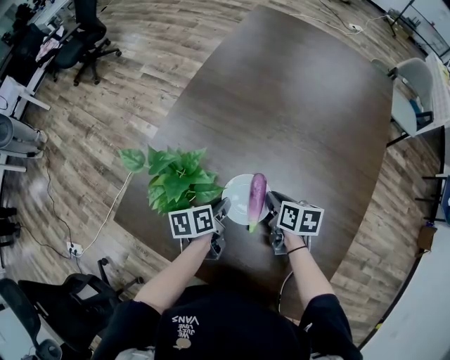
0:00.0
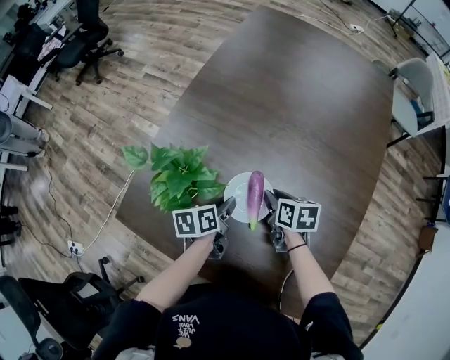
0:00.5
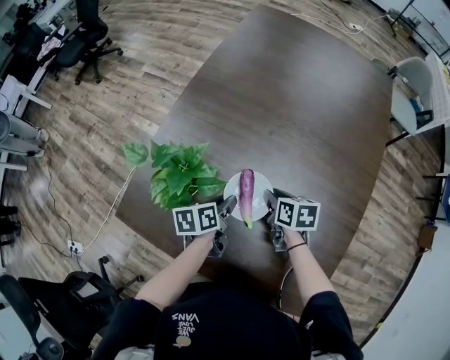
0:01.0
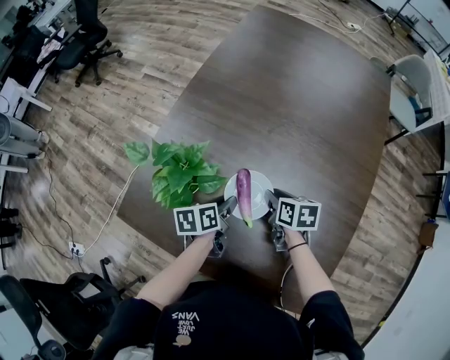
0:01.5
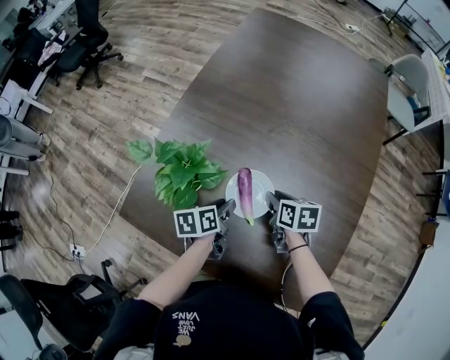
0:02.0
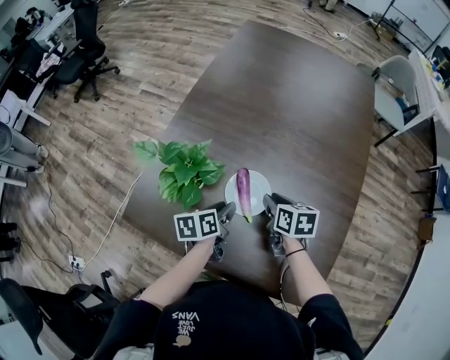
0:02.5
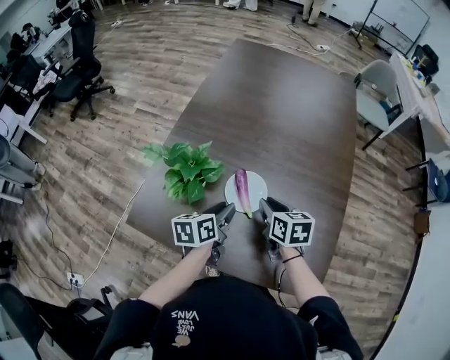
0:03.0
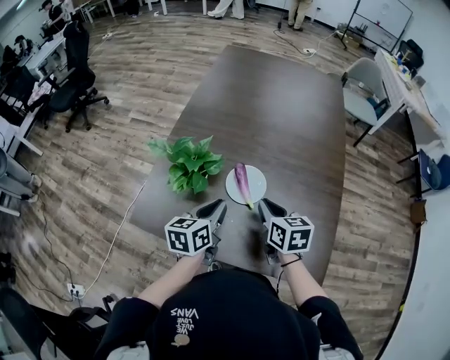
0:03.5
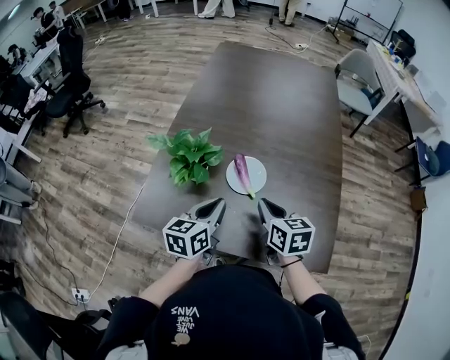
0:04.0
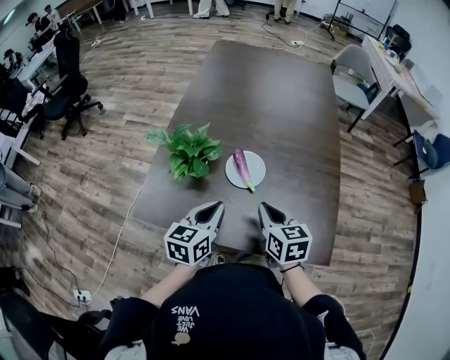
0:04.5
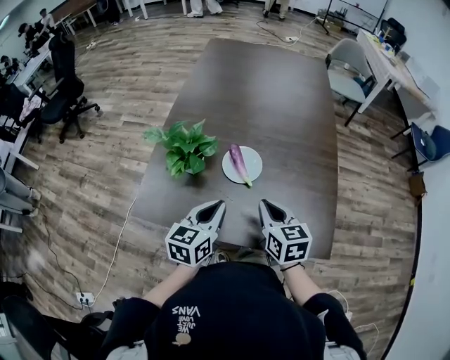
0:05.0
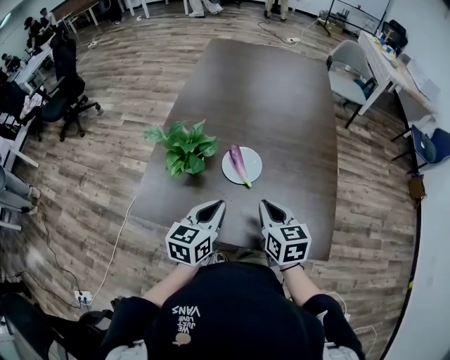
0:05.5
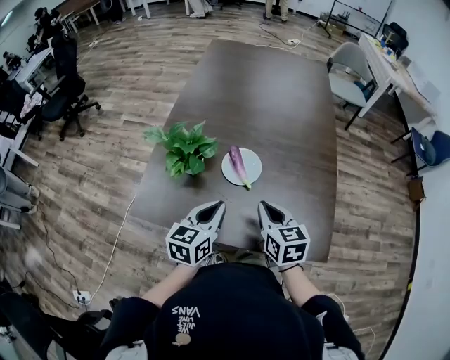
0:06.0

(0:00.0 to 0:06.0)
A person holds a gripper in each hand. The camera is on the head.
0:00.0 - 0:02.0: The left gripper opens up.
0:02.0 - 0:04.0: The left gripper shifts roughly 20 cm upward and backward, rotates roughly 40 degrees, and closes; the right gripper goes about 20 cm backward and upward, and changes its angle by some 30 degrees.
0:04.0 - 0:06.0: The grippers stay close to where they were, moving slightly.

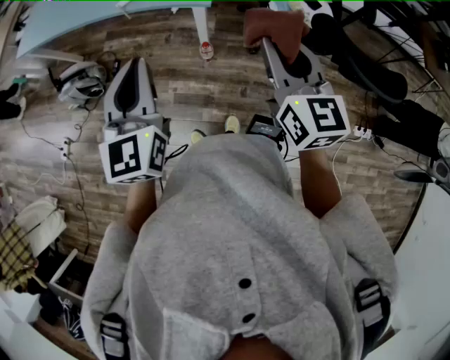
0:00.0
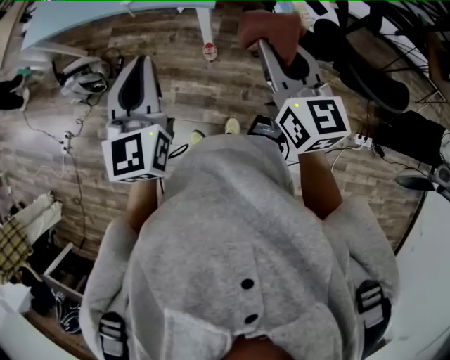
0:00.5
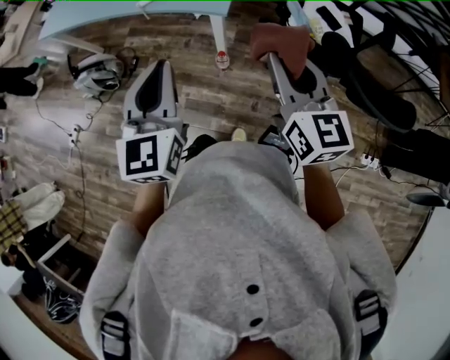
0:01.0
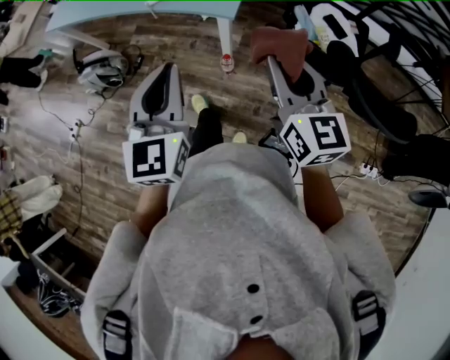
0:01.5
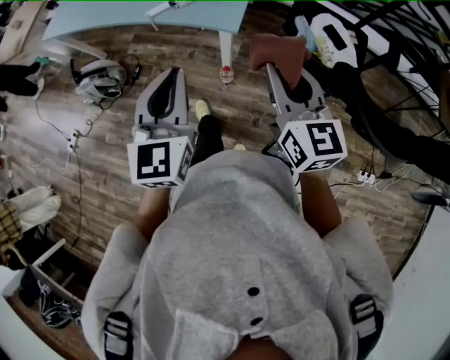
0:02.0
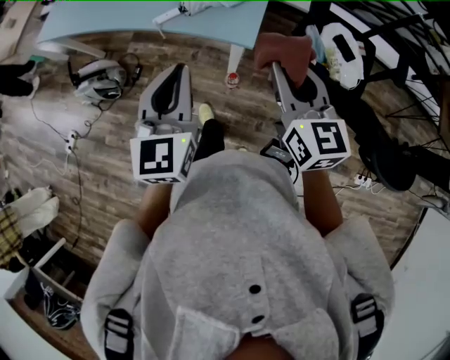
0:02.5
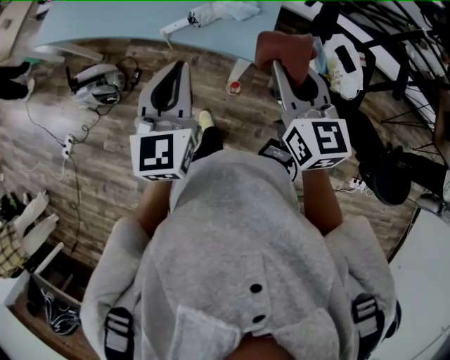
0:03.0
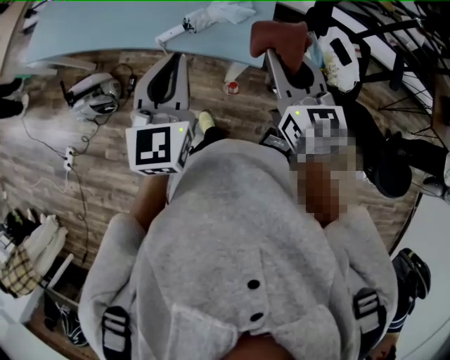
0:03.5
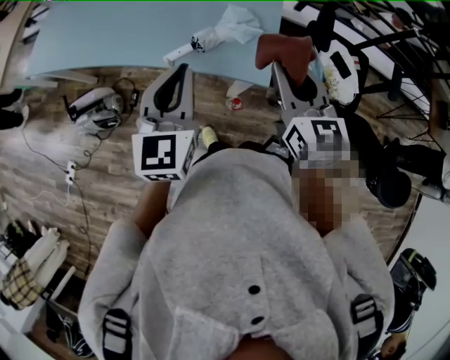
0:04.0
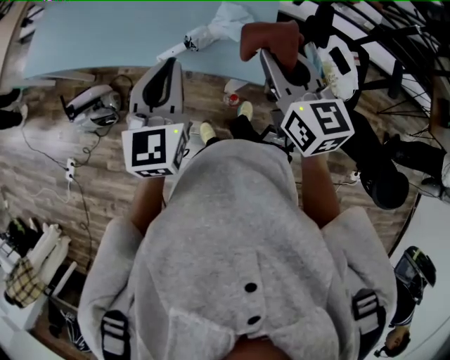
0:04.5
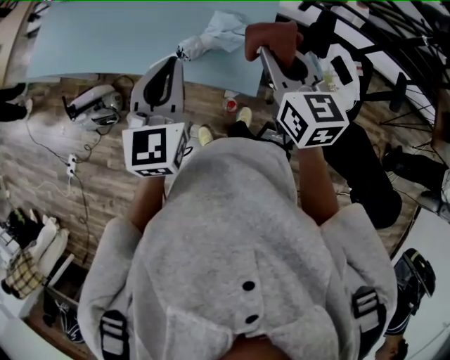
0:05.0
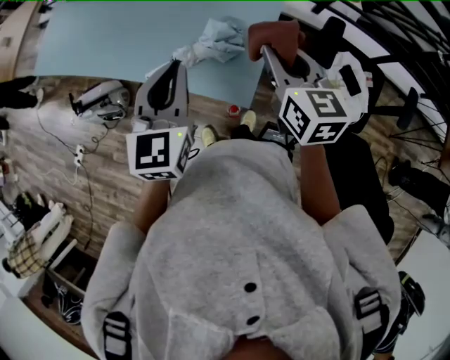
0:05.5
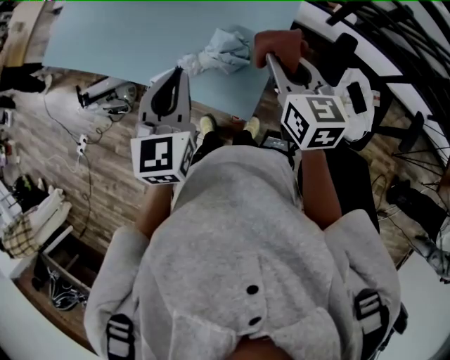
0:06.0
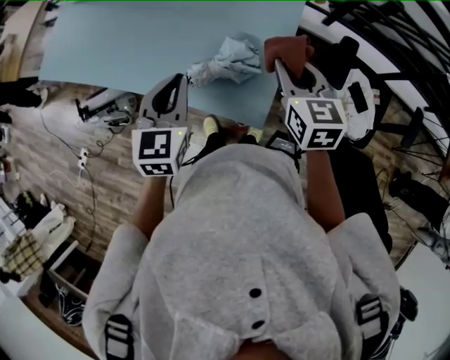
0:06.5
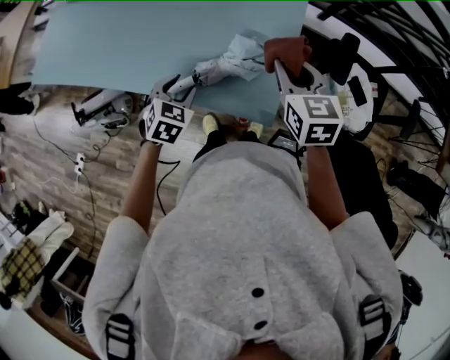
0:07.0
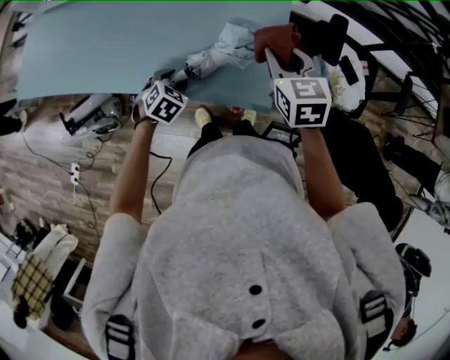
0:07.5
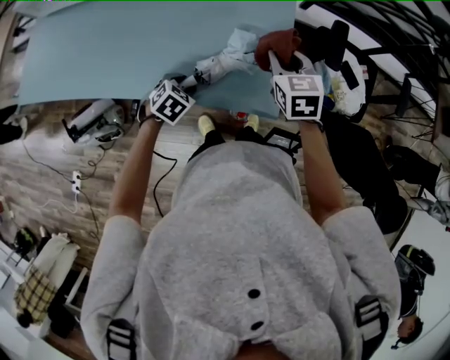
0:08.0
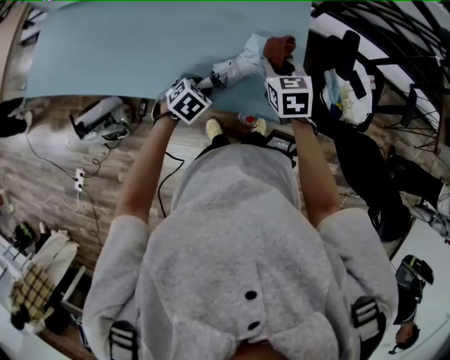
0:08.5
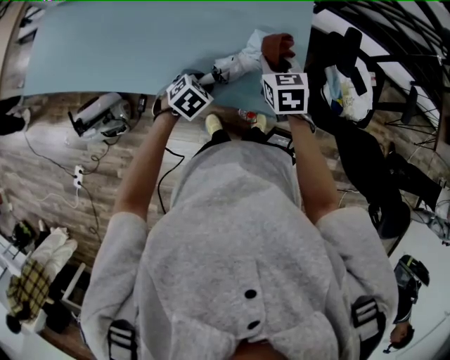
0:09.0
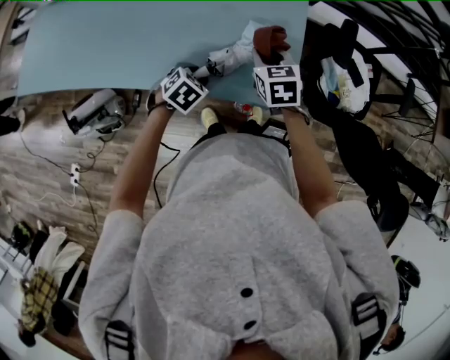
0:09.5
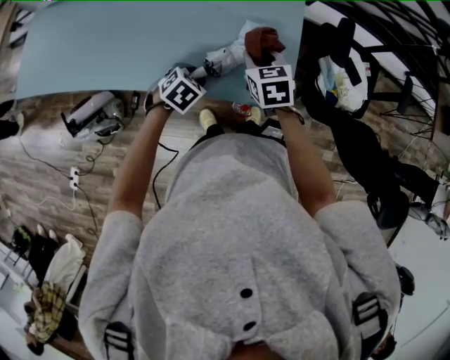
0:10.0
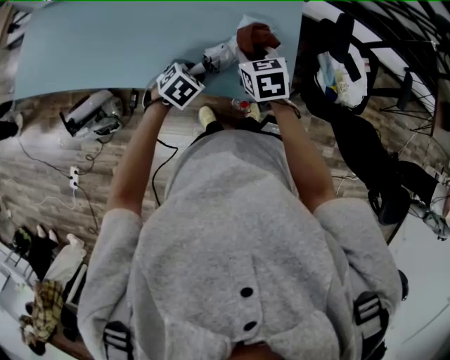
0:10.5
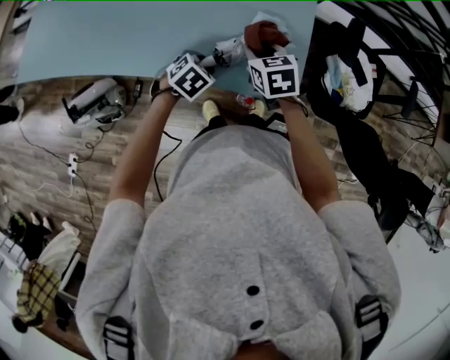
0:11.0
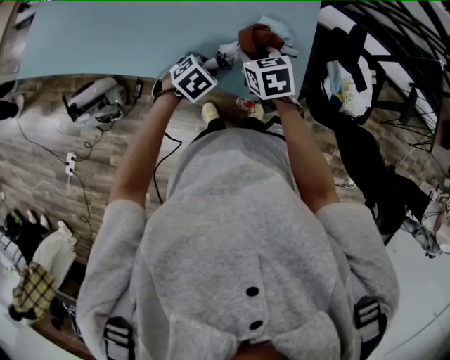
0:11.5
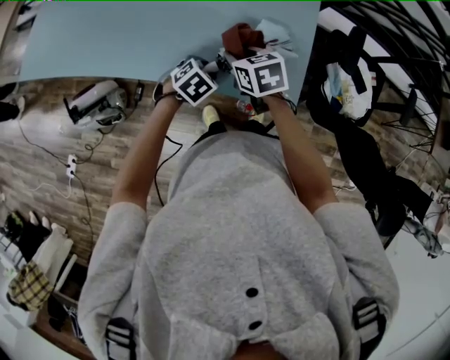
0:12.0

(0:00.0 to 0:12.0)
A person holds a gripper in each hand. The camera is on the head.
0:00.0 - 0:02.0: The left gripper shifts by about 5 cm. Meanwhile the right gripper shifts roughly 5 cm forward.
0:02.0 - 0:04.0: Both grippers move forward and to the left, roughly 30 cm.
0:04.0 - 0:06.0: The left gripper goes some 20 cm to the right and forward. Meanwhile the right gripper moves forward and to the right, about 20 cm.
0:06.0 - 0:08.0: The right gripper heads downward, covering approximately 10 cm, and turns by approximately 30 degrees; the left gripper goes roughly 30 cm downward, tips its fingers downward by some 40 degrees, and opens up.
0:08.0 - 0:10.0: The right gripper heads to the left and downward, covering about 10 cm.
0:10.0 - 0:12.0: The right gripper moves to the left, about 10 cm.

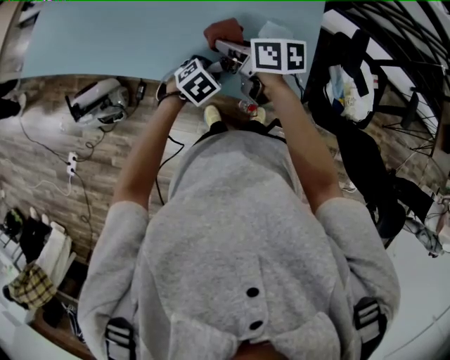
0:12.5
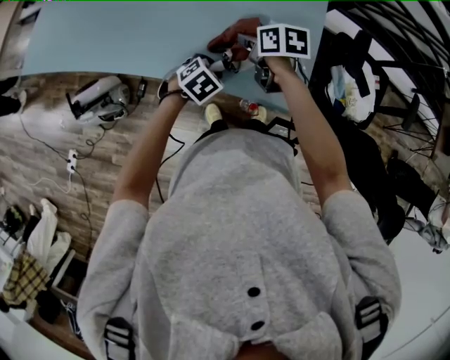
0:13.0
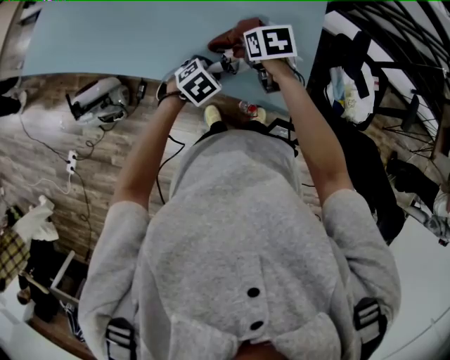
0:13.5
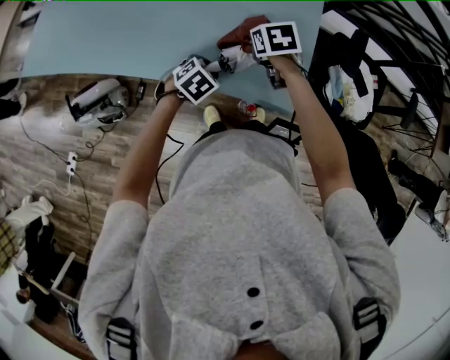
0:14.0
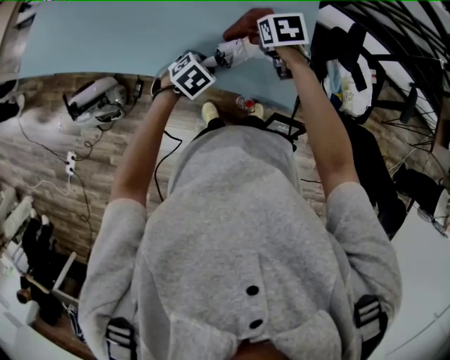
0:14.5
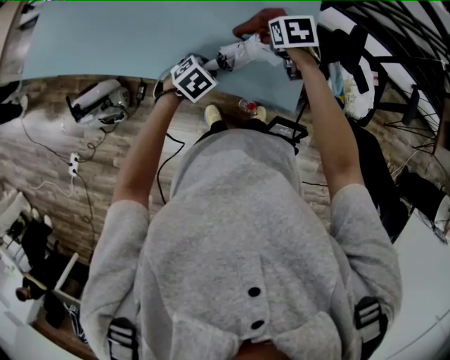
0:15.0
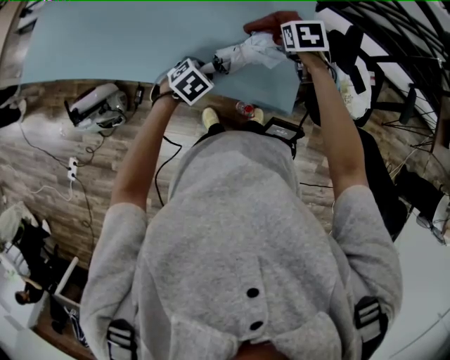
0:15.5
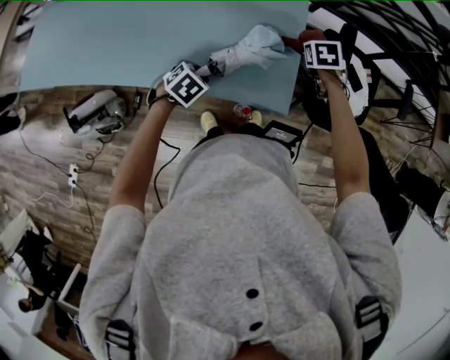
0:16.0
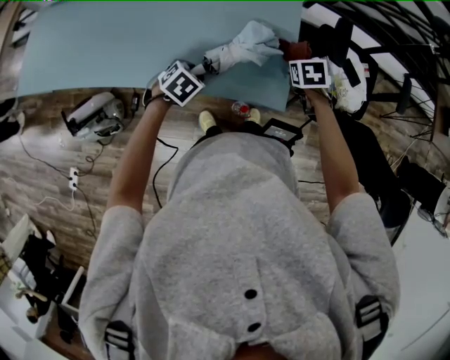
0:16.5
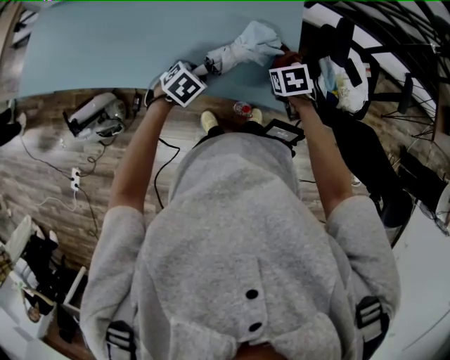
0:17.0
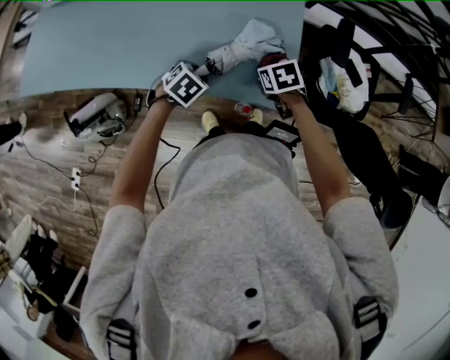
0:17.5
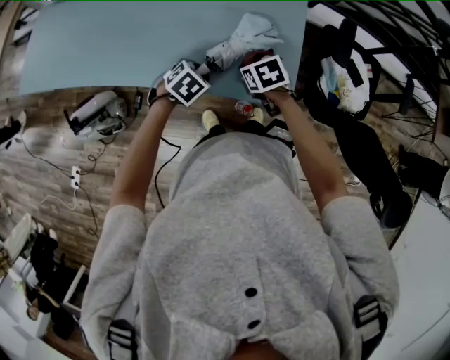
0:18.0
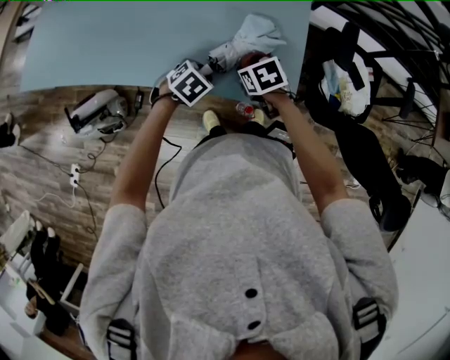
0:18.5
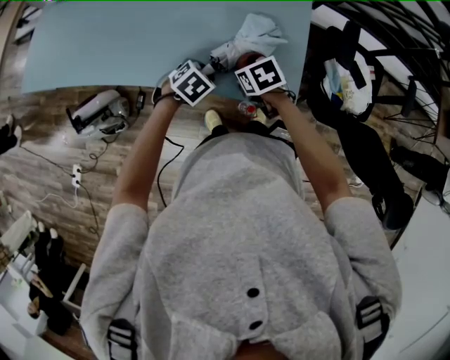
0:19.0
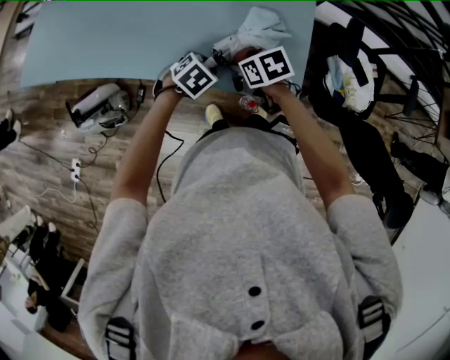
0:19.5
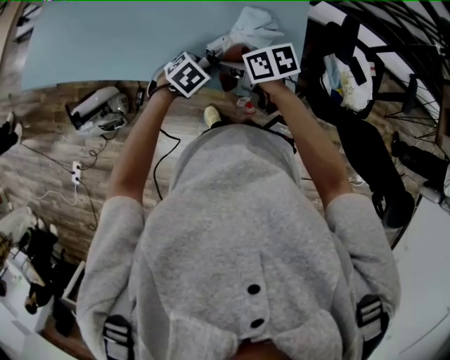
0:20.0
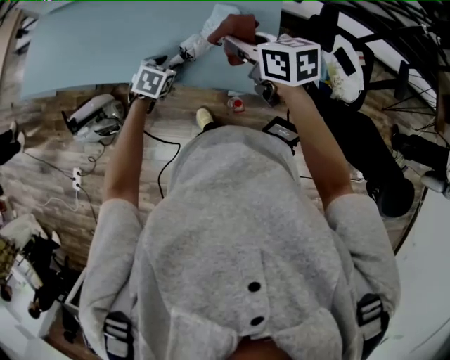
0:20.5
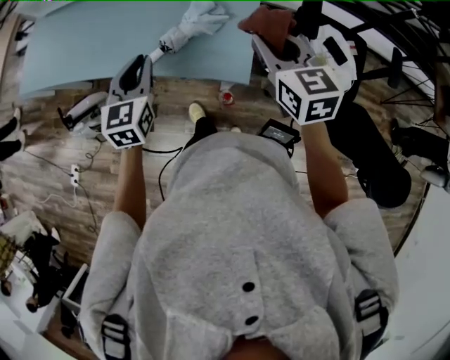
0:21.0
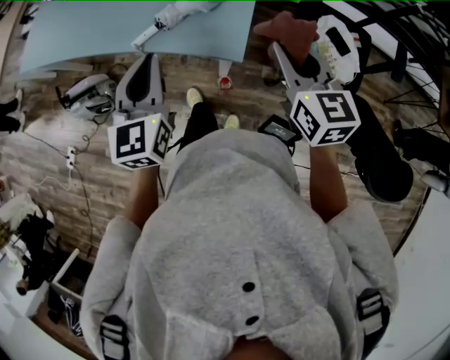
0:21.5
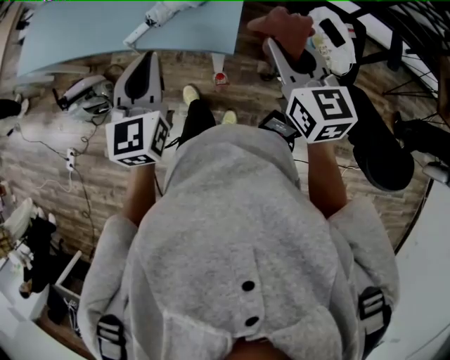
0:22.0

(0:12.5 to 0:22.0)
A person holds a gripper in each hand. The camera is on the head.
0:12.5 - 0:14.5: The right gripper travels to the right and forward by about 15 cm, and turns by some 40 degrees.
0:14.5 - 0:16.5: The right gripper shifts about 20 cm to the right.
0:16.5 - 0:18.0: The right gripper moves to the left and backward, about 20 cm, and turns by some 20 degrees.
0:18.0 - 0:20.0: The right gripper travels to the left and upward by roughly 10 cm, and changes its angle by roughly 30 degrees.
0:20.0 - 0:22.0: The right gripper goes about 40 cm to the right, upward and backward, and rotates about 50 degrees; the left gripper heads upward and backward, covering roughly 35 cm, angles its fingers upward, by about 50 degrees, and closes up.
